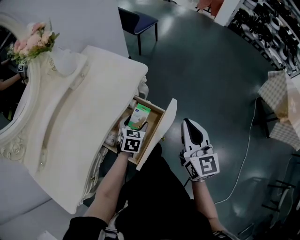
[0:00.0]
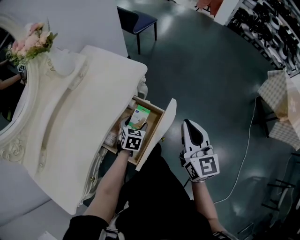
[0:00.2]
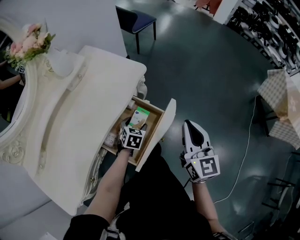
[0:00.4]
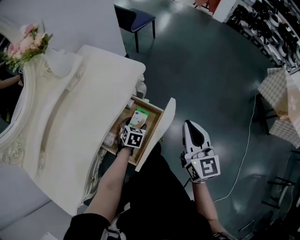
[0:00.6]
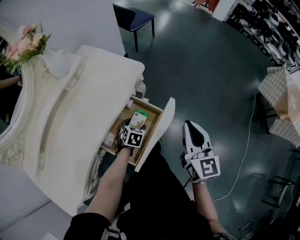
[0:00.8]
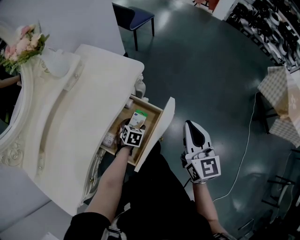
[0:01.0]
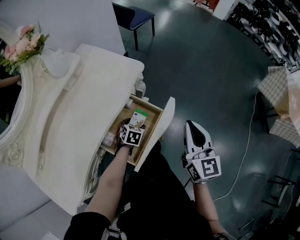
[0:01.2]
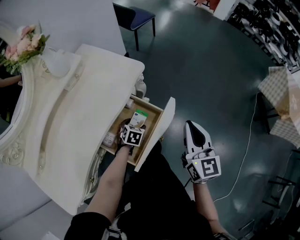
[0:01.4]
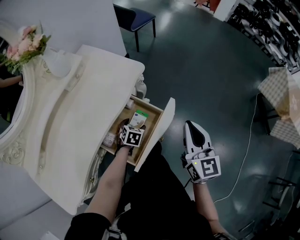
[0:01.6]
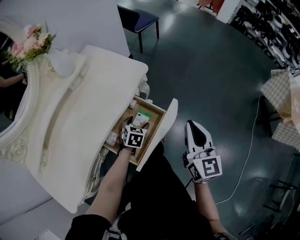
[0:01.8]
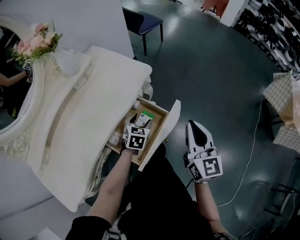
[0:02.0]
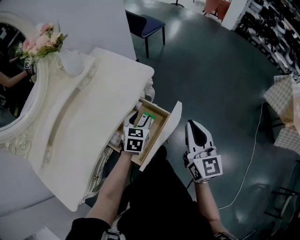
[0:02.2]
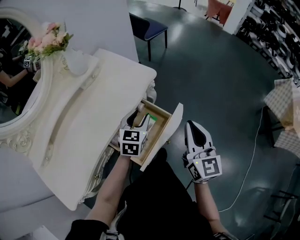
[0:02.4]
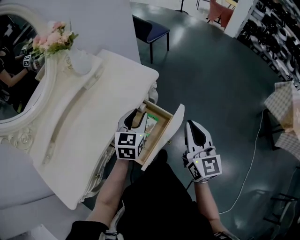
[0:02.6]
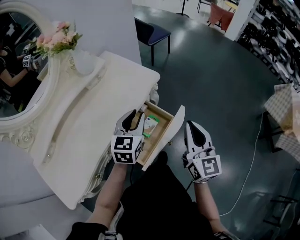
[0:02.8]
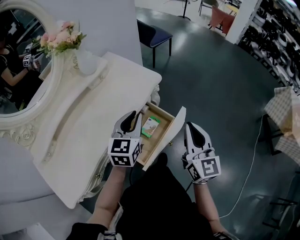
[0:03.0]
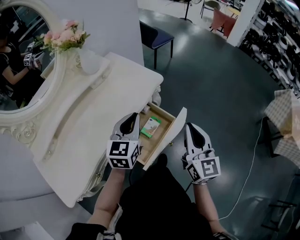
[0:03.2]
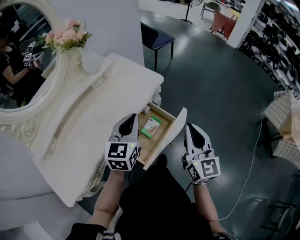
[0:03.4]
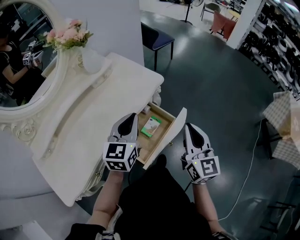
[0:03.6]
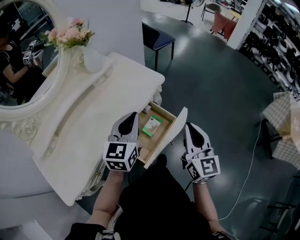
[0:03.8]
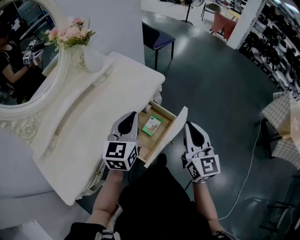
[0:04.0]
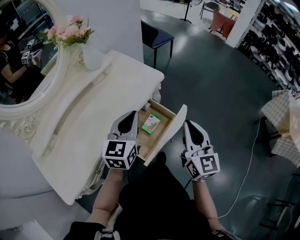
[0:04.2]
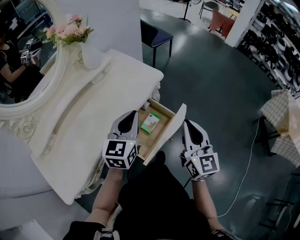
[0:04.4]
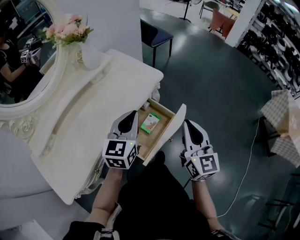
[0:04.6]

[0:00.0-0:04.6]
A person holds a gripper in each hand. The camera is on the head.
0:00.0 to 0:01.6: The left gripper heads downward, covering about 10 cm.
0:01.6 to 0:03.0: The left gripper is displaced upward by about 30 cm, tips its fingers upward by some 40 degrees, and closes its fingers, while the right gripper changes place by about 5 cm.
0:03.0 to 0:04.6: The grippers make only small movements.

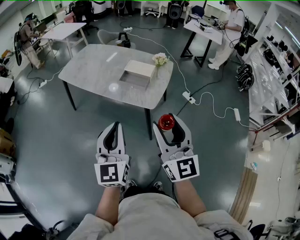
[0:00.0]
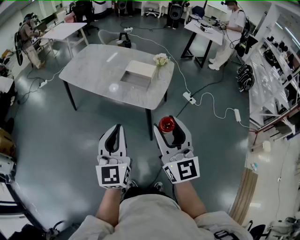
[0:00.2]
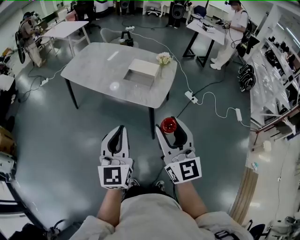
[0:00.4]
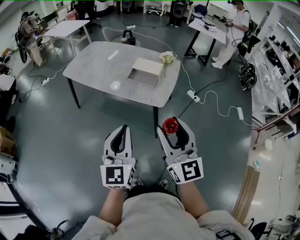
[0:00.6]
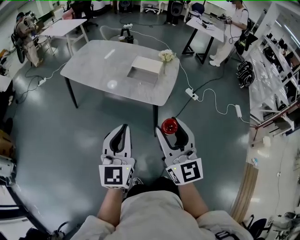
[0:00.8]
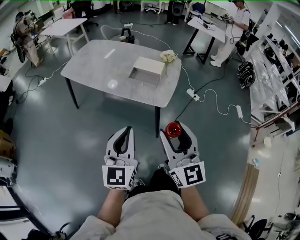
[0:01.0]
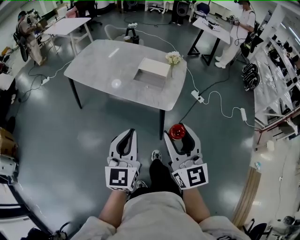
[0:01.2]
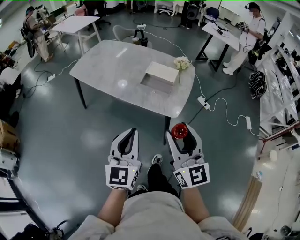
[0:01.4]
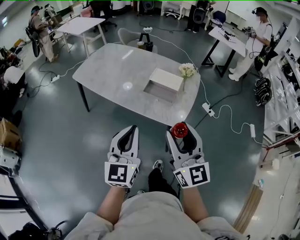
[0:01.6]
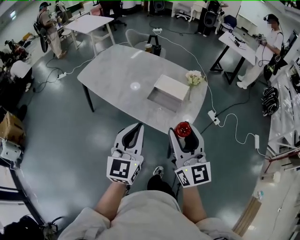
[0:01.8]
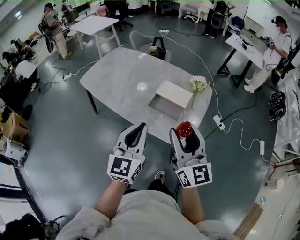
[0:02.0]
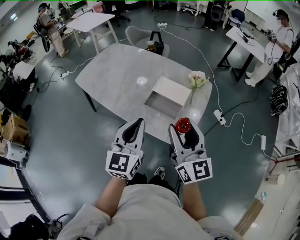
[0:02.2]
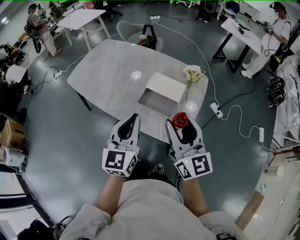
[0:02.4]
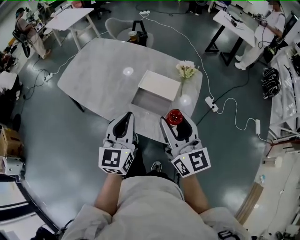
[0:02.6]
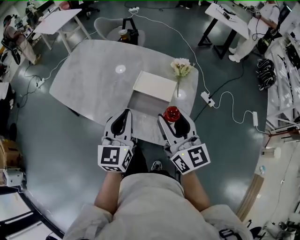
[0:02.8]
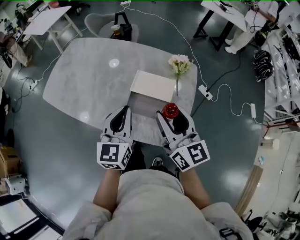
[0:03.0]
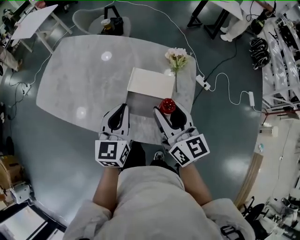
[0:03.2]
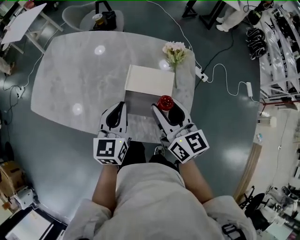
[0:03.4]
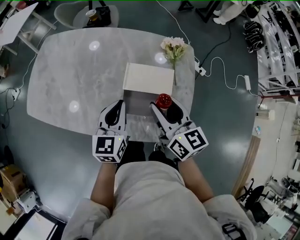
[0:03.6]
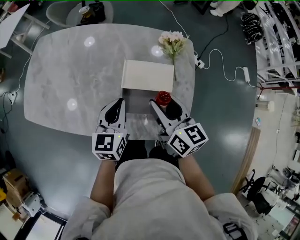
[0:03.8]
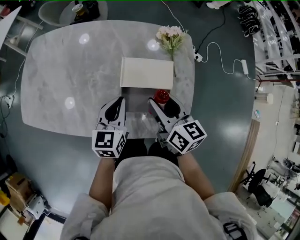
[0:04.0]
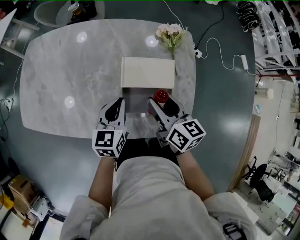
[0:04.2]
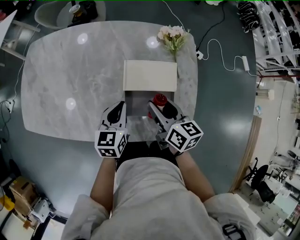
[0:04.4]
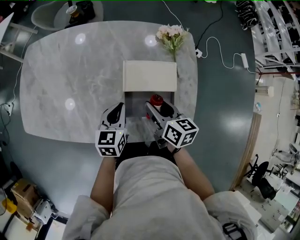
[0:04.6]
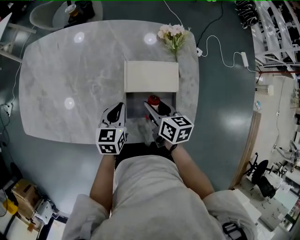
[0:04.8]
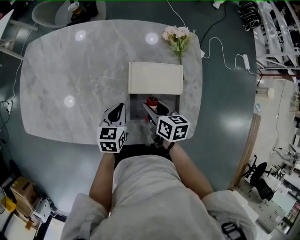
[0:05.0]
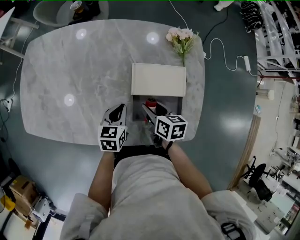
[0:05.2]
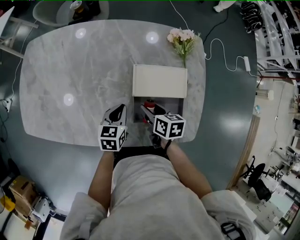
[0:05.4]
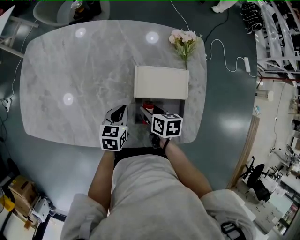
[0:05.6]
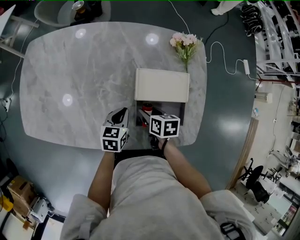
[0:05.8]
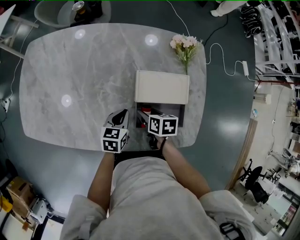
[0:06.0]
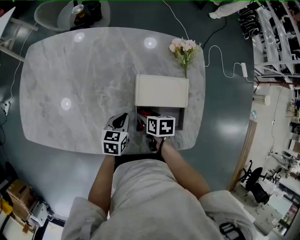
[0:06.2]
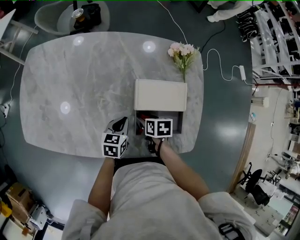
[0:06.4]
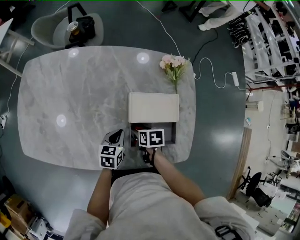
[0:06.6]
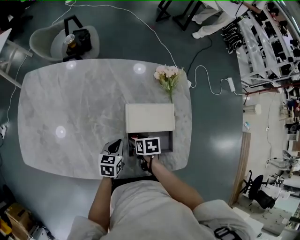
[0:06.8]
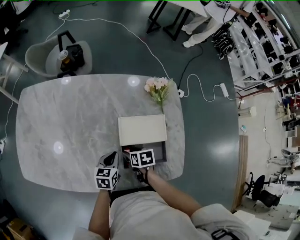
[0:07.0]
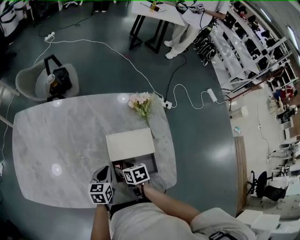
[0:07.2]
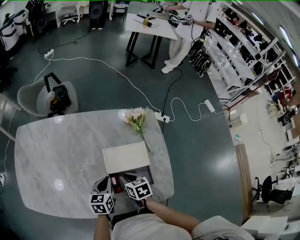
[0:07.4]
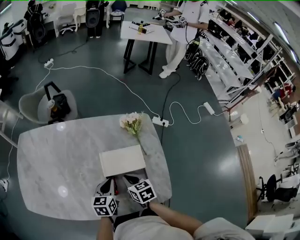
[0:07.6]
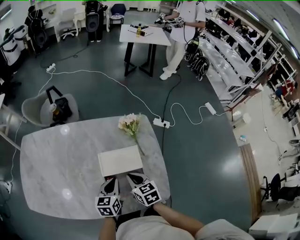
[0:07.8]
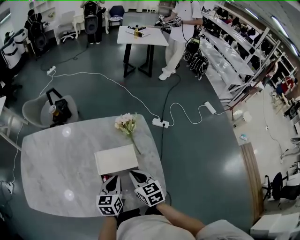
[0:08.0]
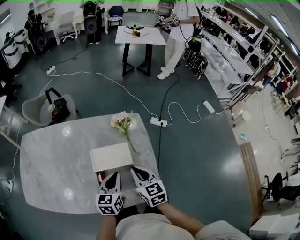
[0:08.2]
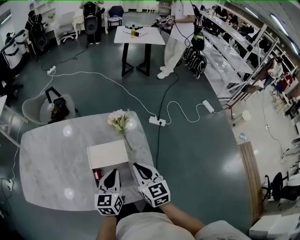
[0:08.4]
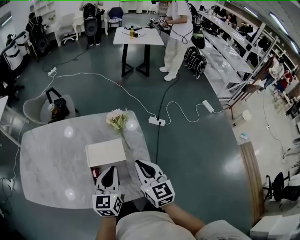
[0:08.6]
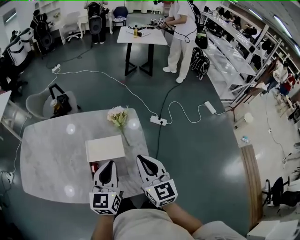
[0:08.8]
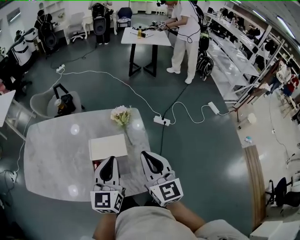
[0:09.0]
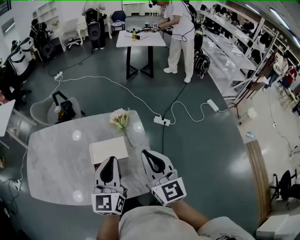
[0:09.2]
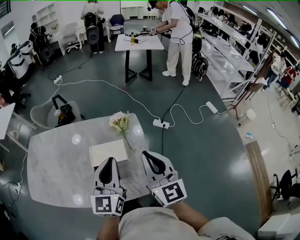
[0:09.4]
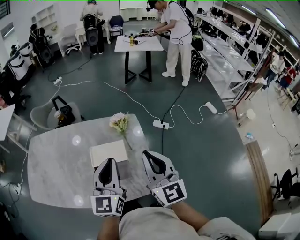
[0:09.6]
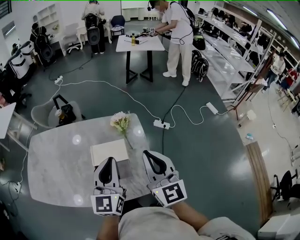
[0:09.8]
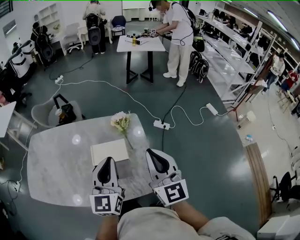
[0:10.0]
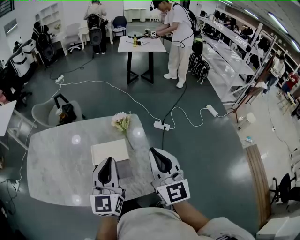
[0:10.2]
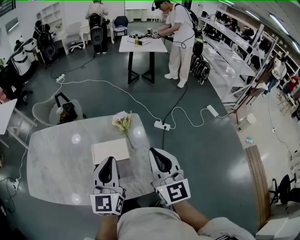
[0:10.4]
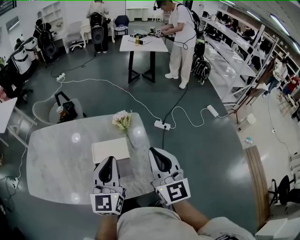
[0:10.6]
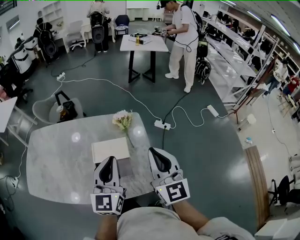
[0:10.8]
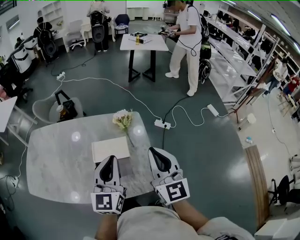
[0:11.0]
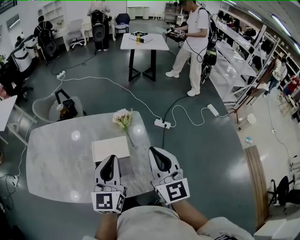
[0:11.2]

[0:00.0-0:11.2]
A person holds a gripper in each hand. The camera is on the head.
0:00.0 to 0:01.6: Both grippers travel together forward and to the left, approximately 15 cm.
0:01.6 to 0:03.2: The two grippers go some 40 cm forward. The right gripper rotates about 20 degrees.
0:03.2 to 0:04.8: The right gripper moves downward, approximately 25 cm, and tips its fingers downward by approximately 30 degrees; the left gripper goes approximately 20 cm downward and forward, and turns by approximately 30 degrees.
0:04.8 to 0:06.4: The left gripper travels downward by roughly 5 cm; the right gripper heads downward and to the left, covering roughly 15 cm, and rotates approximately 30 degrees.
0:06.4 to 0:08.0: The left gripper travels to the right and upward by some 20 cm, while the right gripper moves upward and to the right, some 25 cm, rotates some 40 degrees, and closes.
0:08.0 to 0:09.6: The right gripper goes some 25 cm upward and to the right, and tips its fingers upward by approximately 40 degrees, while the left gripper goes roughly 25 cm upward, and tilts its fingers about 30 degrees upward.
0:09.6 to 0:11.2: The grippers make only small movements.

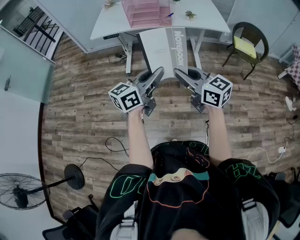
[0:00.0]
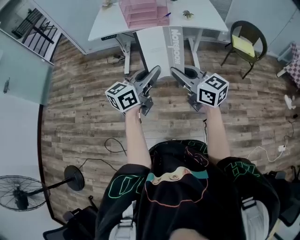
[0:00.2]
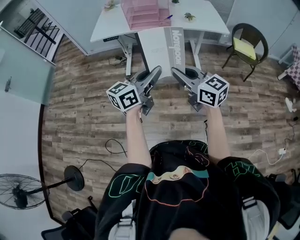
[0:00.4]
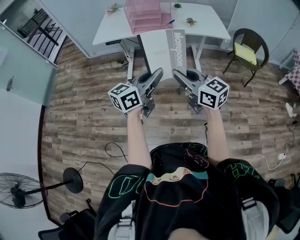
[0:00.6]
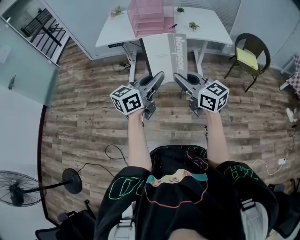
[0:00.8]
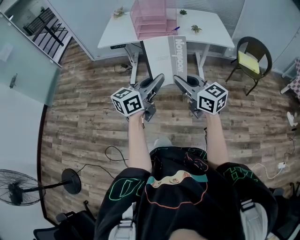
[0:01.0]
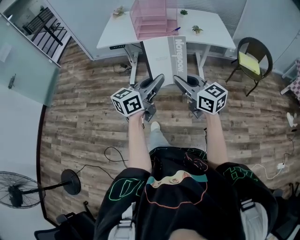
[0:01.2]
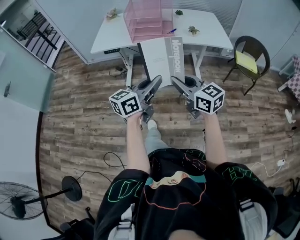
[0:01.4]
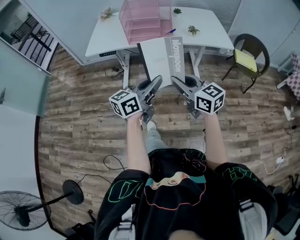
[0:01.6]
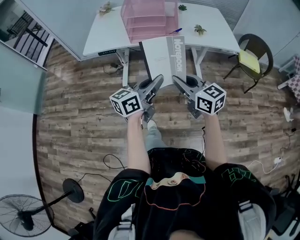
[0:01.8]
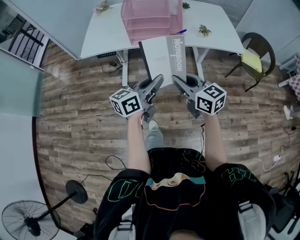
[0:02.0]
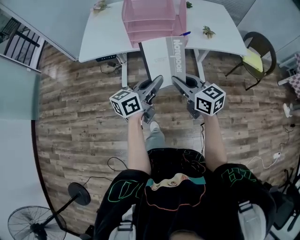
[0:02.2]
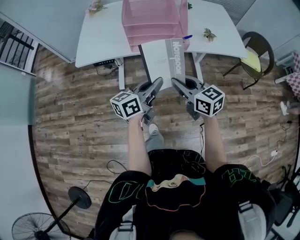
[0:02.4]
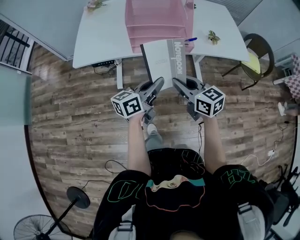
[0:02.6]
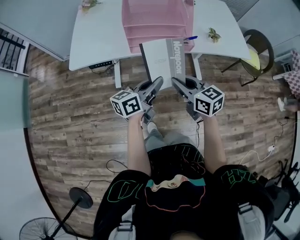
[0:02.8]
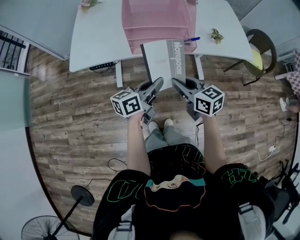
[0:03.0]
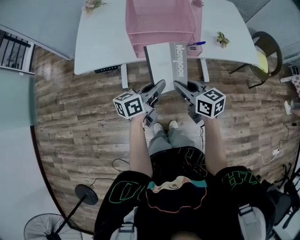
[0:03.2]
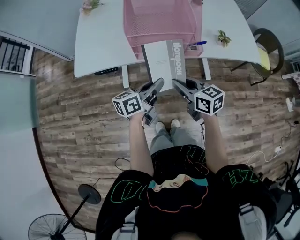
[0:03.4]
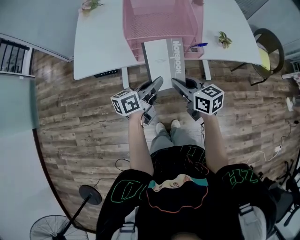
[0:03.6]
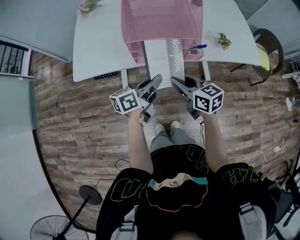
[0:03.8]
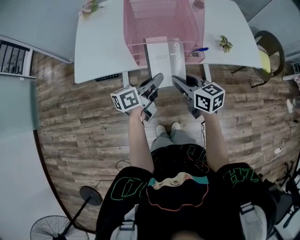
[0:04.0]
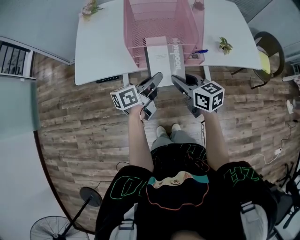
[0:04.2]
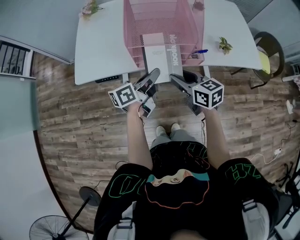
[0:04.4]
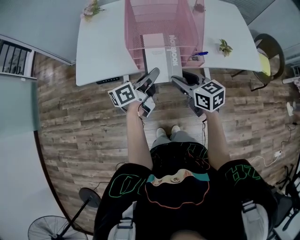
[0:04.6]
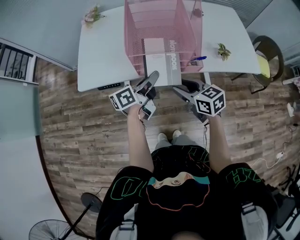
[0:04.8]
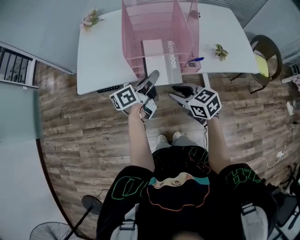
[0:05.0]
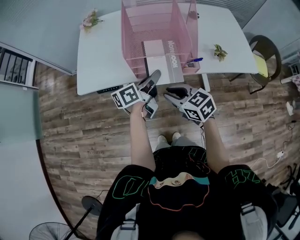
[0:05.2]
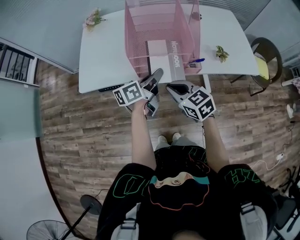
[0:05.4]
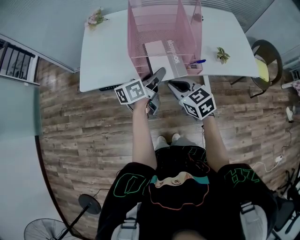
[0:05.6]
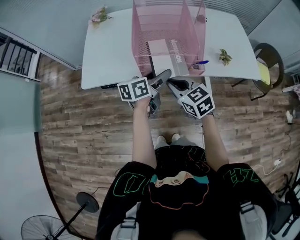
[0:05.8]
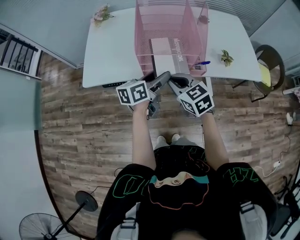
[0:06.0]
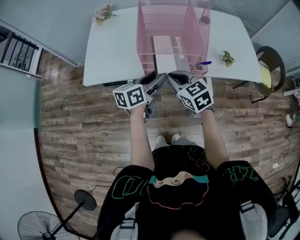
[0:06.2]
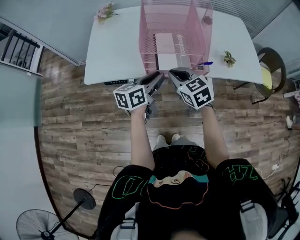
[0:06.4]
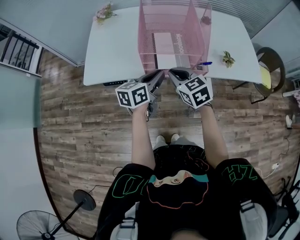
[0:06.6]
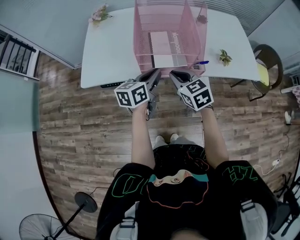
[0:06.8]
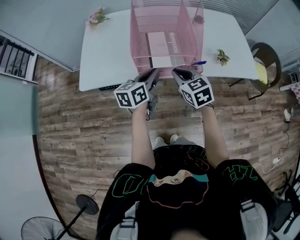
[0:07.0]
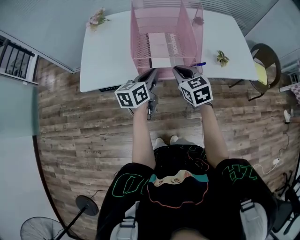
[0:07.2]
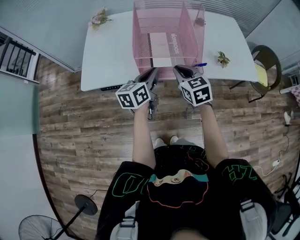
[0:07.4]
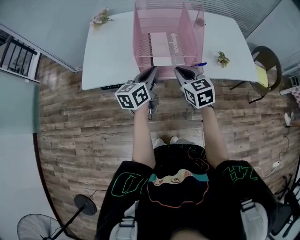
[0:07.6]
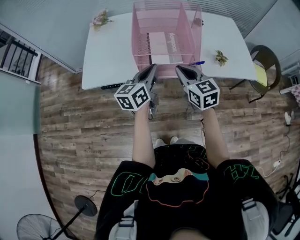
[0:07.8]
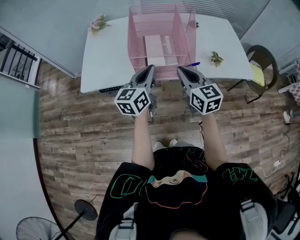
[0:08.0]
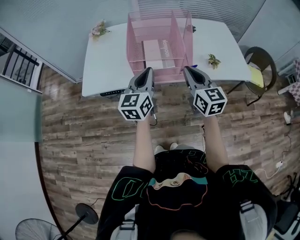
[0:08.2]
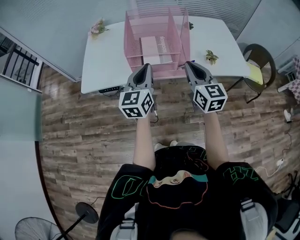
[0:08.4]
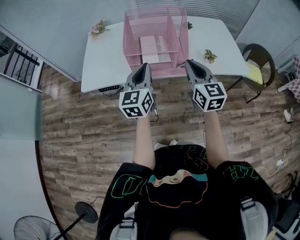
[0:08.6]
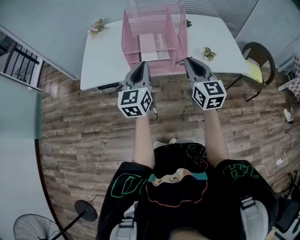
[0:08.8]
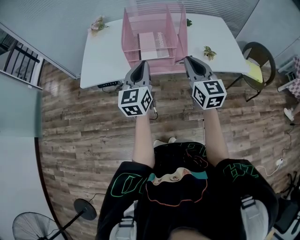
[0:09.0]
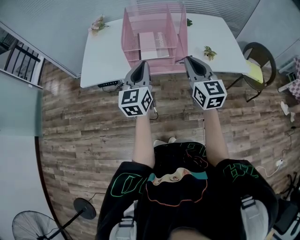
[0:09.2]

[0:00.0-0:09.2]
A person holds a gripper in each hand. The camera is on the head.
0:00.0 to 0:01.6: The two grippers go roughly 15 cm forward.
0:01.6 to 0:03.0: The grippers both shift forward and downward by roughly 30 cm. The left gripper turns by approximately 20 degrees.
0:03.0 to 0:04.6: Both grippers travel together forward, roughly 10 cm. The right gripper opens.
0:04.6 to 0:06.2: The right gripper changes place by some 5 cm, turns by approximately 20 degrees, and closes its fingers, while the left gripper opens up.
0:06.2 to 0:07.6: The left gripper closes up; the right gripper changes place by approximately 5 cm.
0:07.6 to 0:09.2: The left gripper travels upward and backward by approximately 10 cm, and swivels about 30 degrees. Meanwhile the right gripper shifts about 15 cm upward, to the right and backward, and changes its angle by some 20 degrees.
